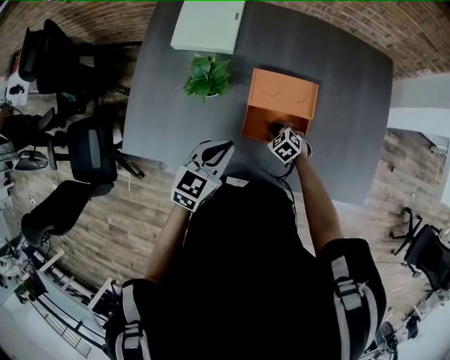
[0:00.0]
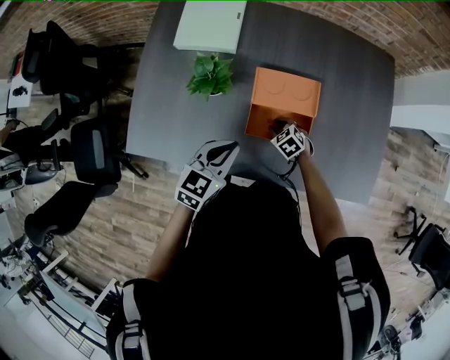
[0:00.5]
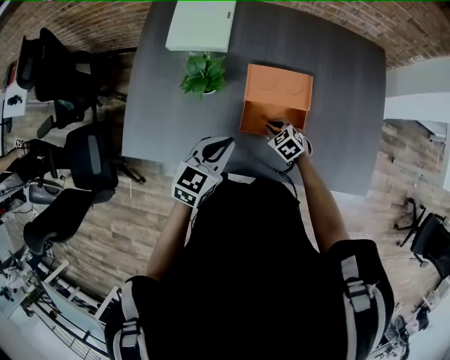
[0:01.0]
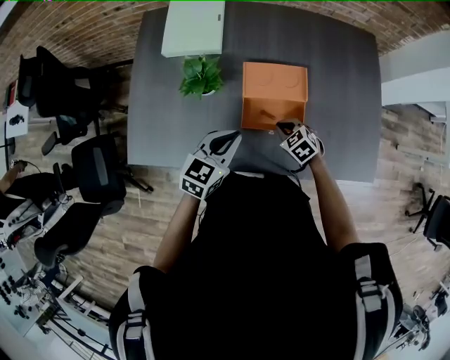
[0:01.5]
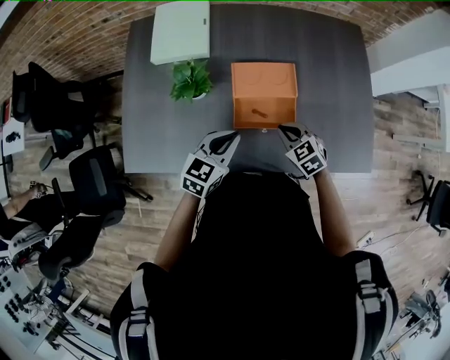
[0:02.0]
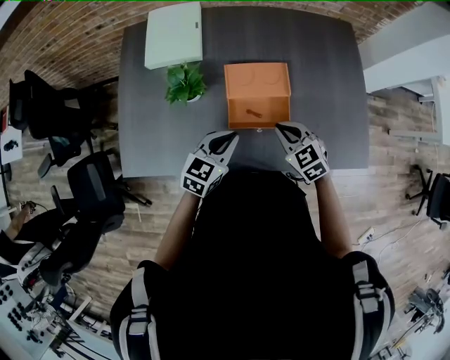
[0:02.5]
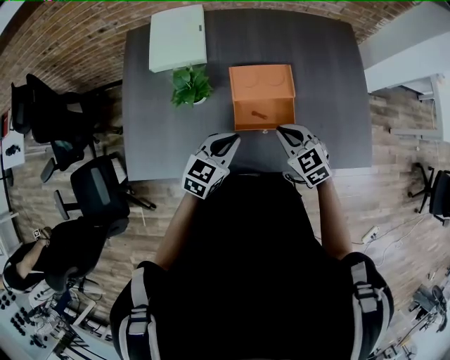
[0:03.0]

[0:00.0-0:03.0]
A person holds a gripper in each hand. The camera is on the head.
0:00.0 to 0:01.5: The right gripper shifts some 10 cm upward.
0:01.5 to 0:03.0: The right gripper moves upward, roughly 15 cm, and changes its angle by some 20 degrees.

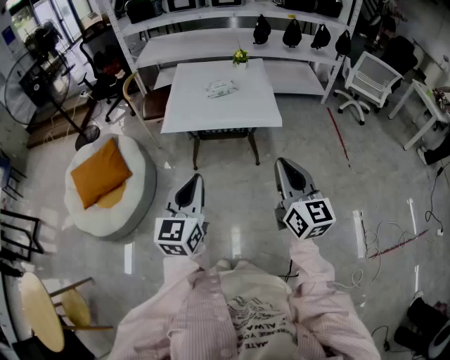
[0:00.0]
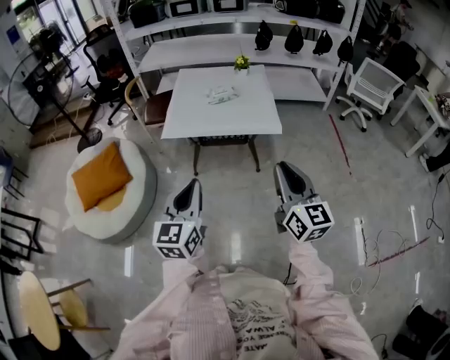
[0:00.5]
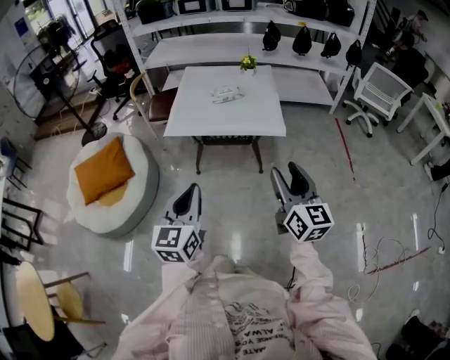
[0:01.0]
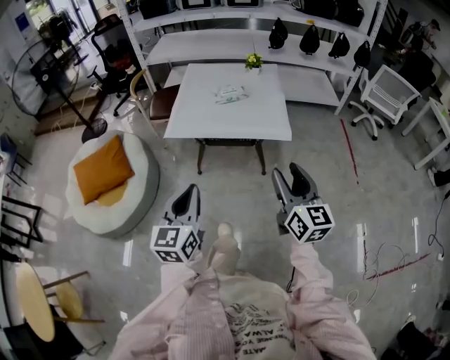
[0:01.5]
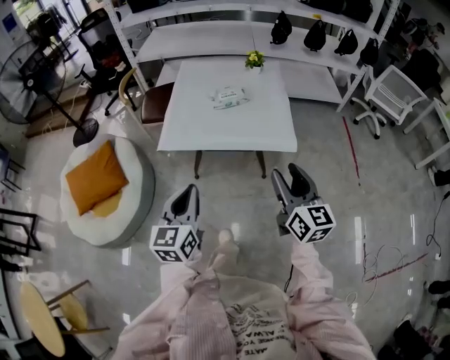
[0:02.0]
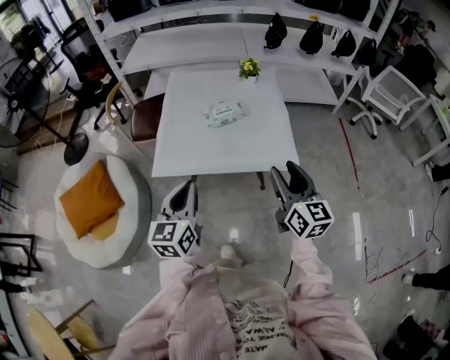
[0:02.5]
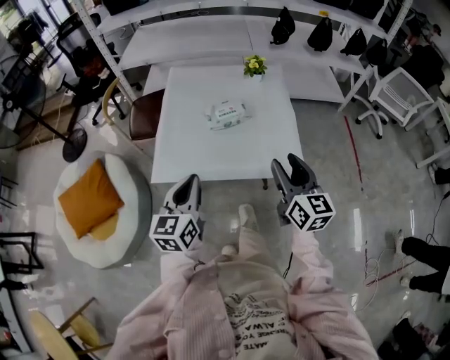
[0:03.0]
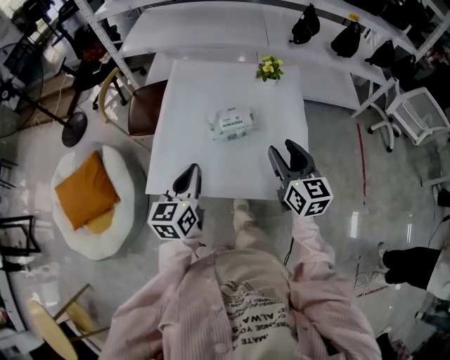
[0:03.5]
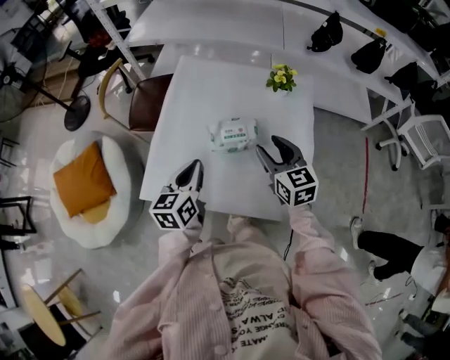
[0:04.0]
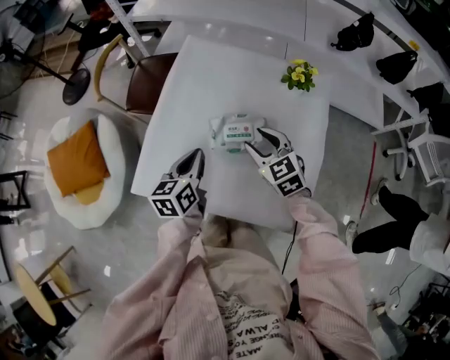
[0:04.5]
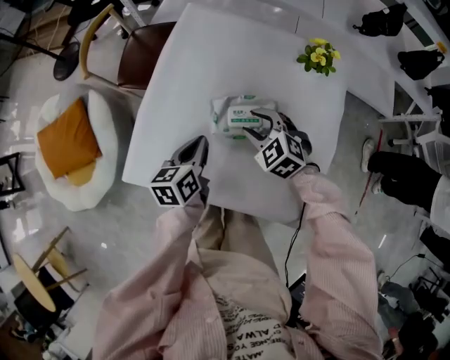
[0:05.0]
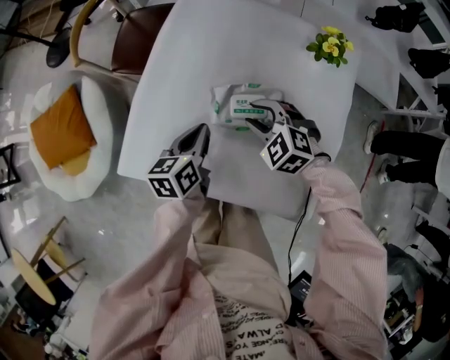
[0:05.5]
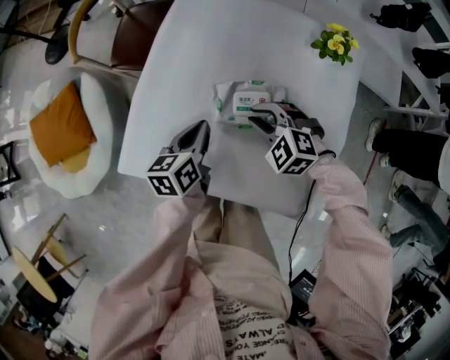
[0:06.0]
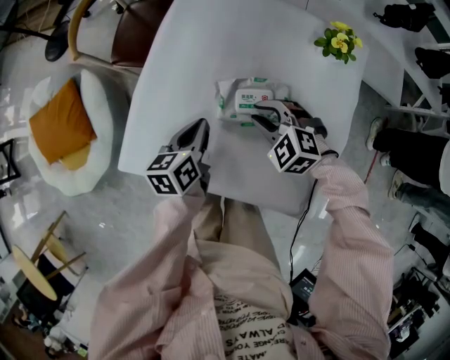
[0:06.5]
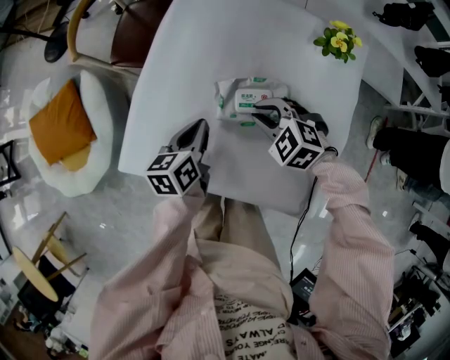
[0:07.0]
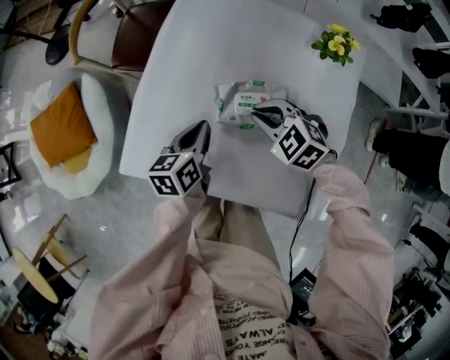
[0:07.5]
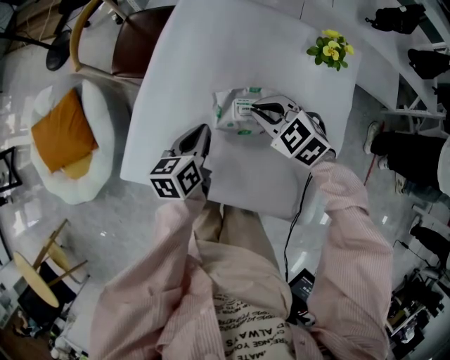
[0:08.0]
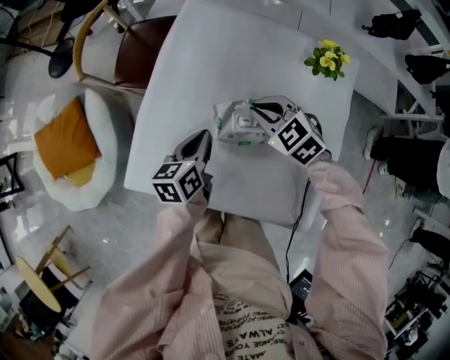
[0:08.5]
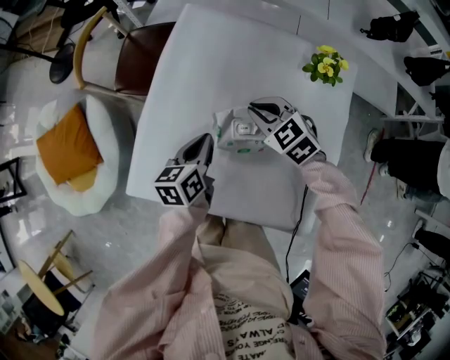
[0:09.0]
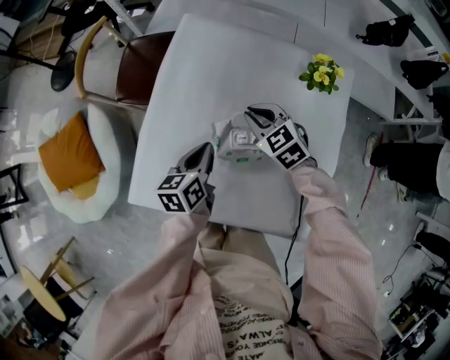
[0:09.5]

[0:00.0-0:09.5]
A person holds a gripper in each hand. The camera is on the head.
0:00.0 to 0:02.0: The right gripper shifts approximately 20 cm forward, and opens its fingers; the left gripper moves forward and downward, some 20 cm.
0:02.0 to 0:04.0: Both grippers are carried forward, about 40 cm. The right gripper rotates some 30 degrees.
0:04.0 to 0:05.5: The left gripper moves downward and forward, roughly 15 cm, while the right gripper goes some 20 cm downward, forward and to the left, and turns by some 60 degrees.
0:05.5 to 0:07.5: The right gripper closes.
0:07.5 to 0:09.5: The right gripper heads forward, covering roughly 10 cm, and turns by about 20 degrees.

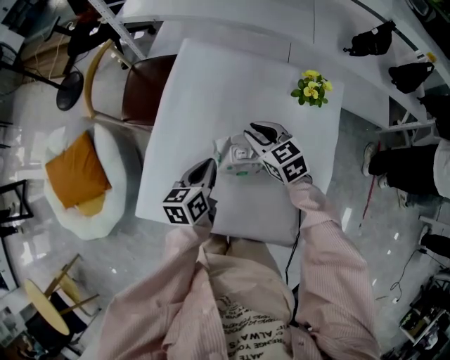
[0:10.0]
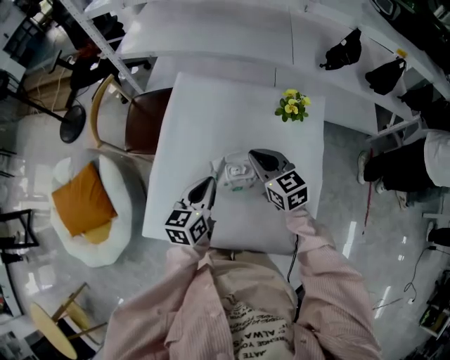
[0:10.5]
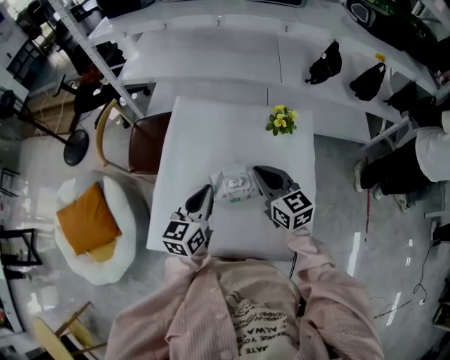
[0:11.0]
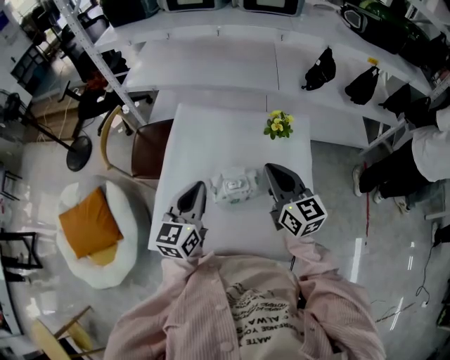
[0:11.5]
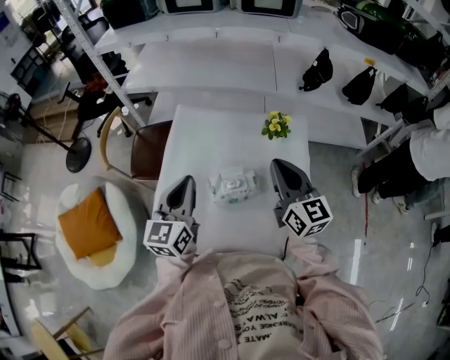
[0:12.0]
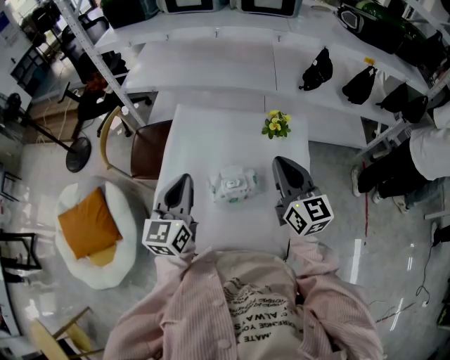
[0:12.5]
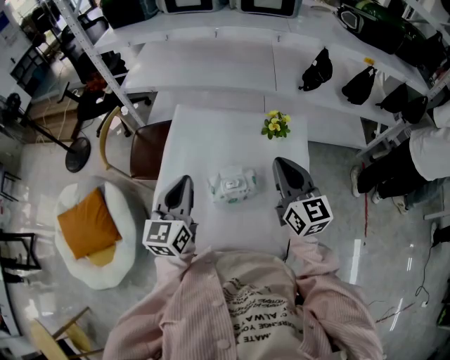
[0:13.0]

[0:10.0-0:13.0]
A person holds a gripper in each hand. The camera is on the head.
0:10.0 to 0:11.5: The right gripper moves upward and backward, some 20 cm, and rotates approximately 40 degrees; the left gripper is displaced upward by approximately 20 cm, and rotates approximately 30 degrees.
0:11.5 to 0:13.0: The grippers move only a little.

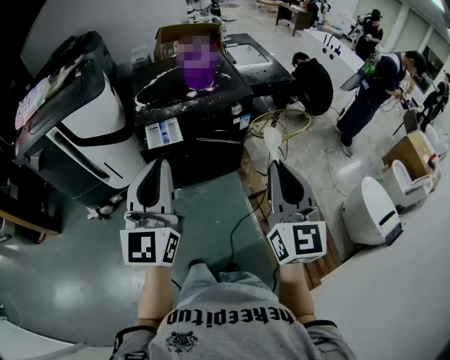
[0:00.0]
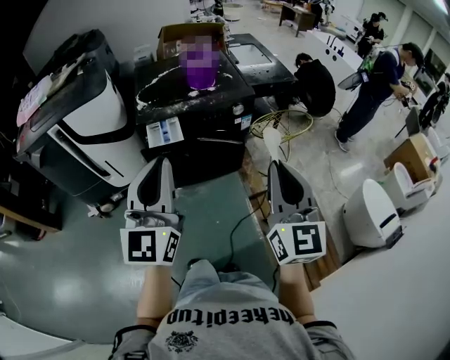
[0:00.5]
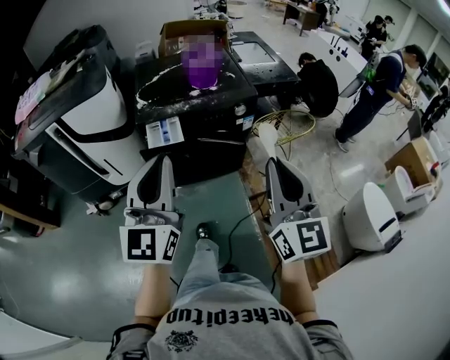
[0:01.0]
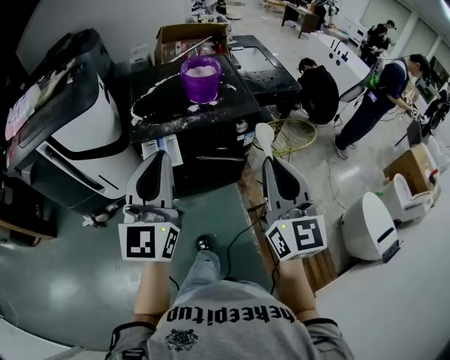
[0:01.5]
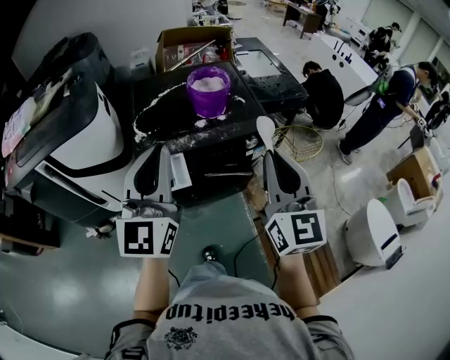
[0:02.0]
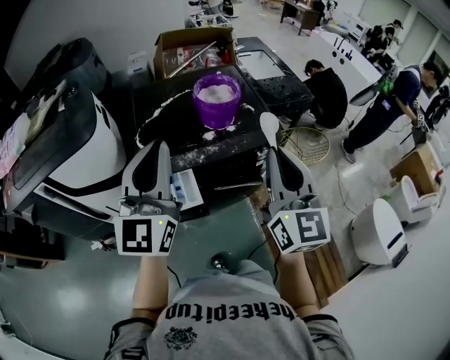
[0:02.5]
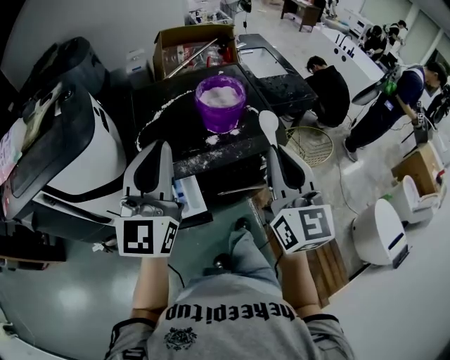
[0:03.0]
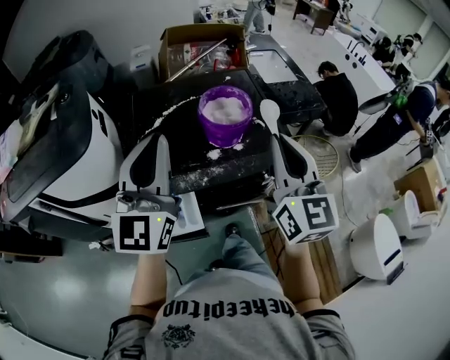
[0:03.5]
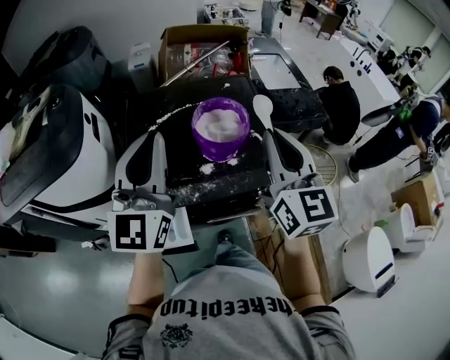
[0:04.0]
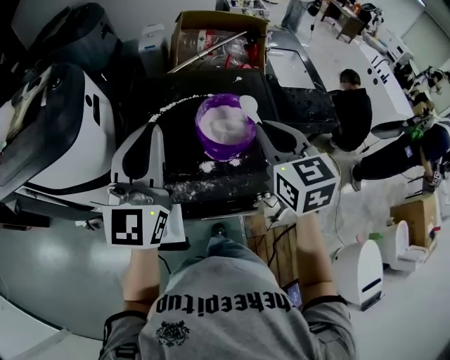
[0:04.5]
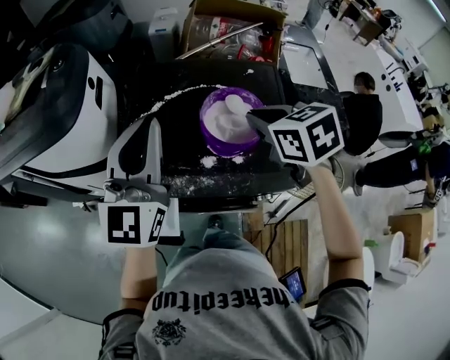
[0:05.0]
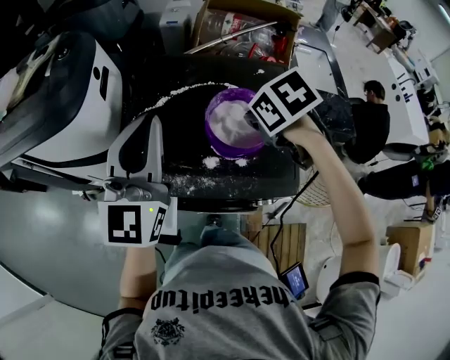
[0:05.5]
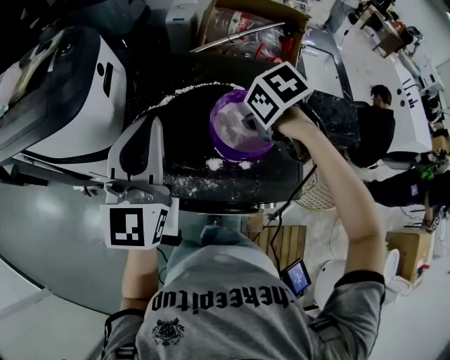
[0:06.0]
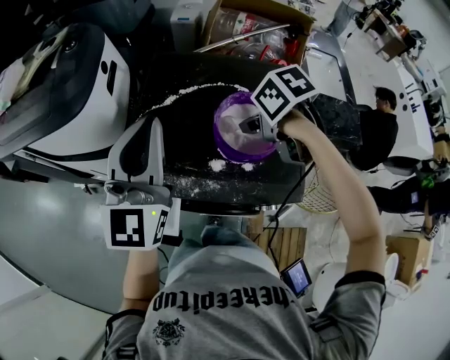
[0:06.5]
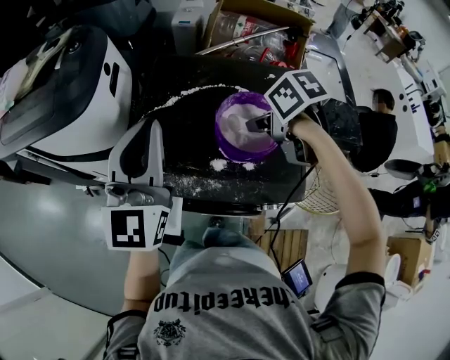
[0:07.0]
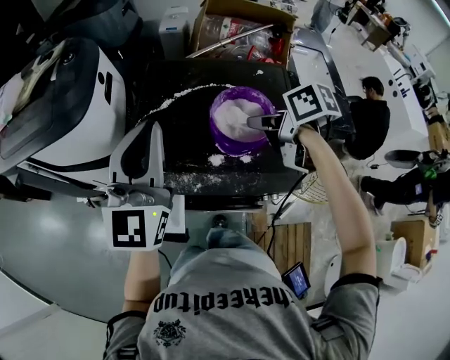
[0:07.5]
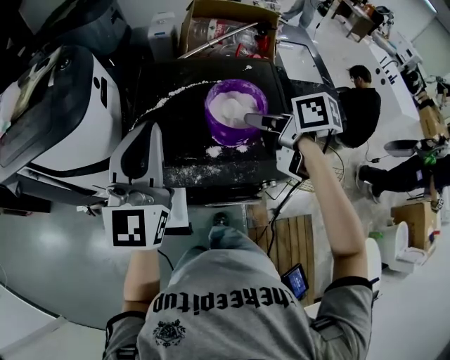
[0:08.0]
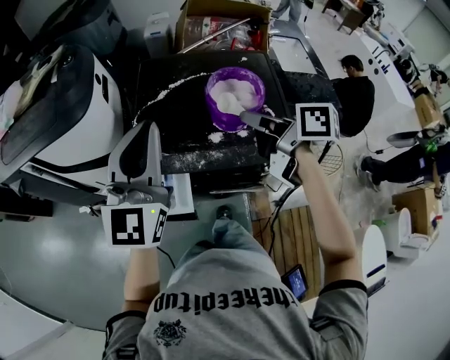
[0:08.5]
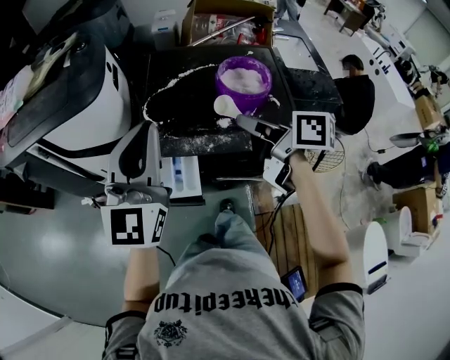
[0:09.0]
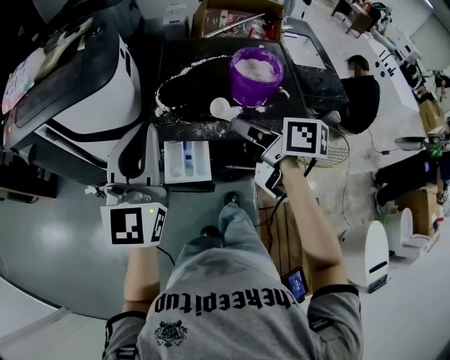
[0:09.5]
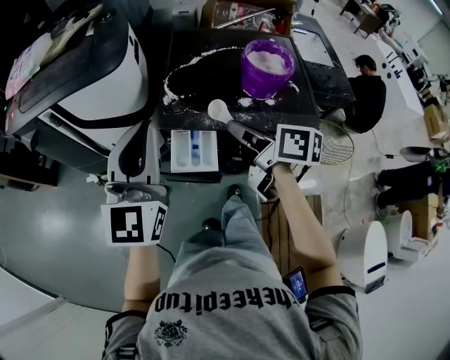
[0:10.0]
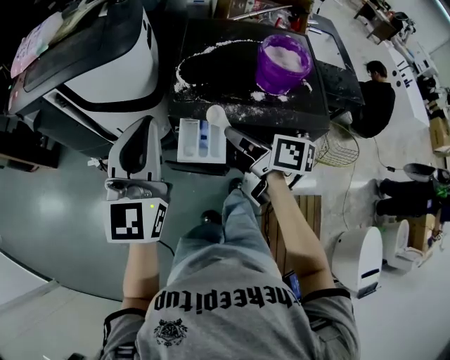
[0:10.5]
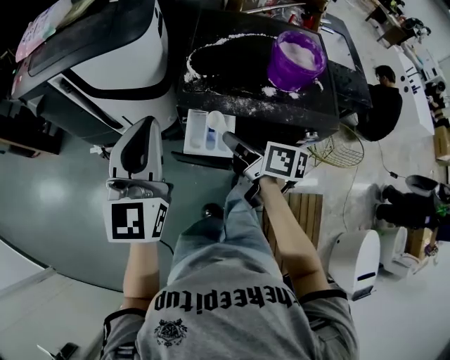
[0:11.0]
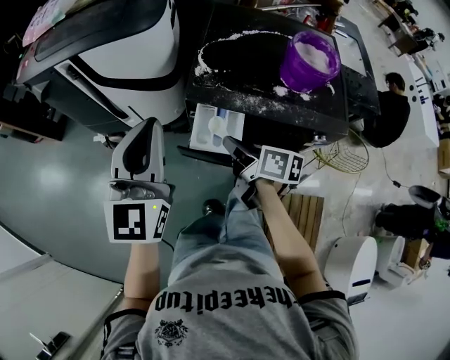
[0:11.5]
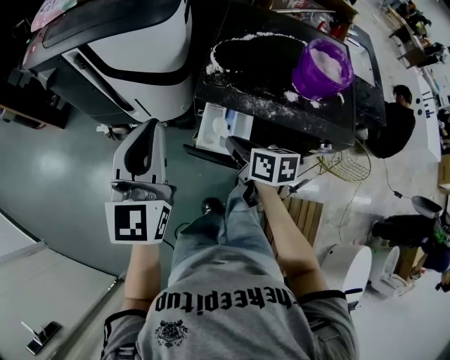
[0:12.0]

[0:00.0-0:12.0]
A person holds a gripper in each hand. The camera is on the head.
0:00.0 to 0:02.0: The grippers both shift forward by roughly 25 cm.
0:02.0 to 0:04.0: Both grippers move forward, roughly 30 cm.
0:04.0 to 0:06.0: The left gripper moves some 10 cm. Meanwhile the right gripper shifts roughly 20 cm downward, and points its fingers some 70 degrees further downward.
0:06.0 to 0:08.0: The left gripper heads backward, covering some 5 cm; the right gripper shifts approximately 10 cm backward and upward, and tilts its fingers about 40 degrees upward.
0:08.0 to 0:10.0: Both grippers move to the left and backward, approximately 25 cm.
0:10.0 to 0:12.0: The left gripper goes about 10 cm to the left and downward, while the right gripper goes approximately 20 cm downward and to the left, and swivels roughly 20 degrees.
